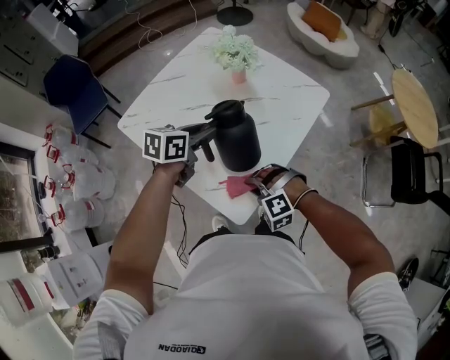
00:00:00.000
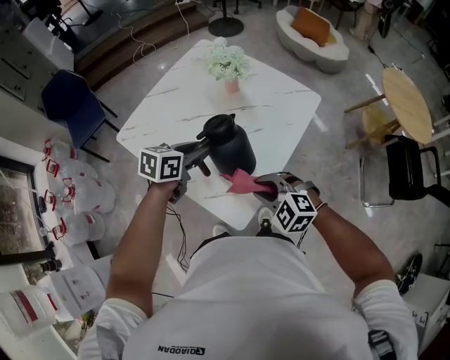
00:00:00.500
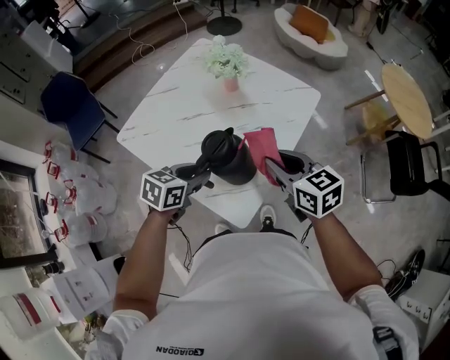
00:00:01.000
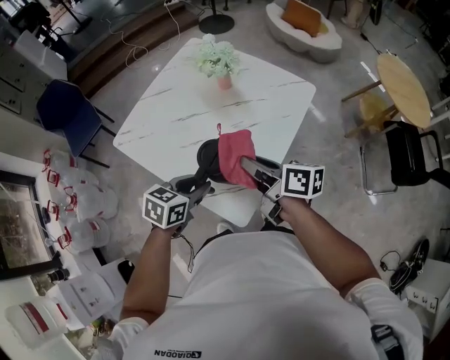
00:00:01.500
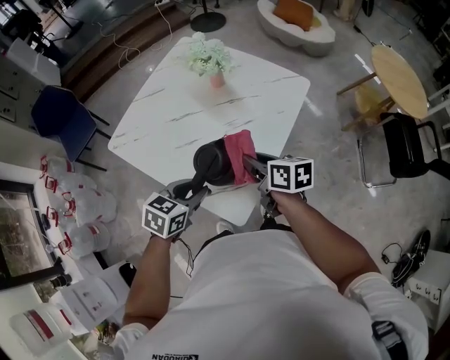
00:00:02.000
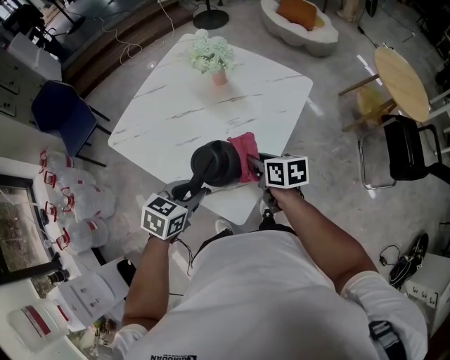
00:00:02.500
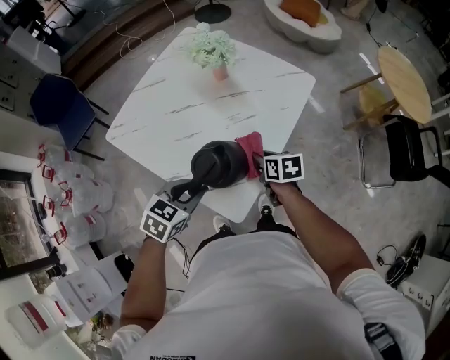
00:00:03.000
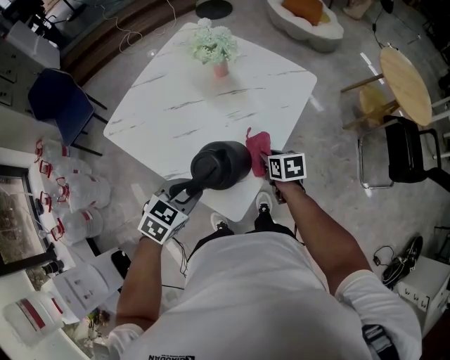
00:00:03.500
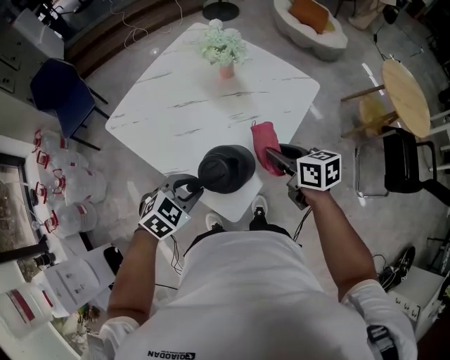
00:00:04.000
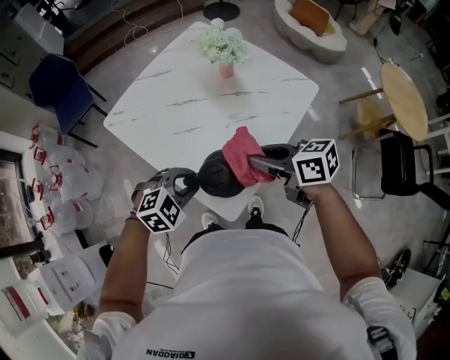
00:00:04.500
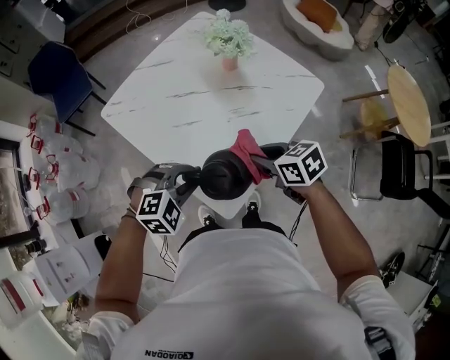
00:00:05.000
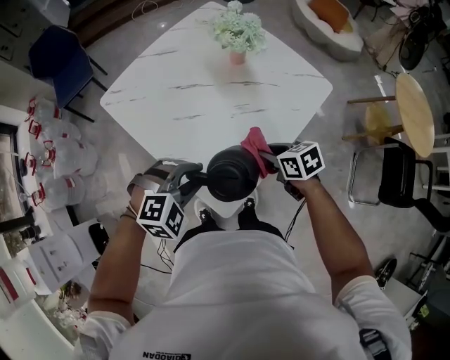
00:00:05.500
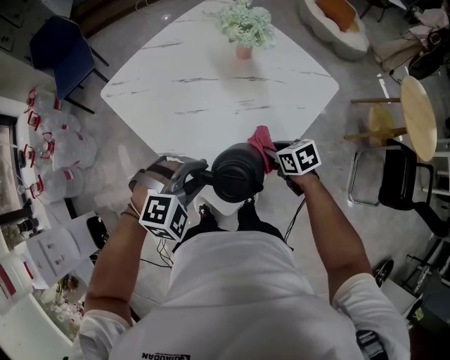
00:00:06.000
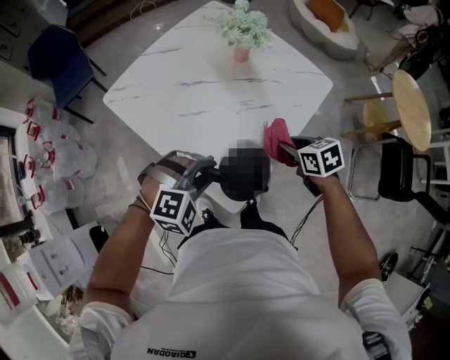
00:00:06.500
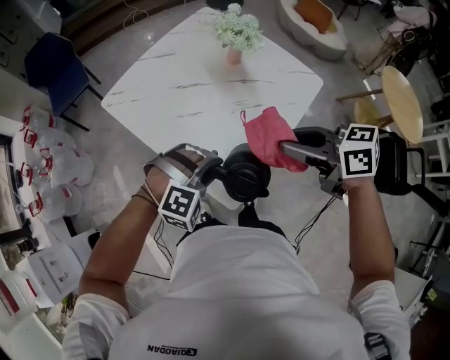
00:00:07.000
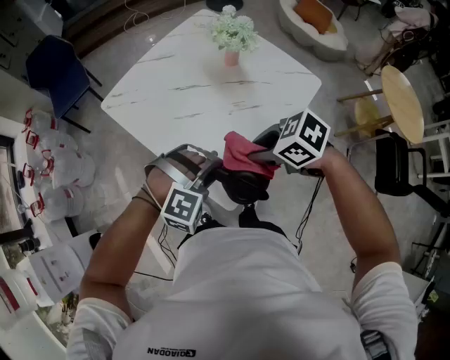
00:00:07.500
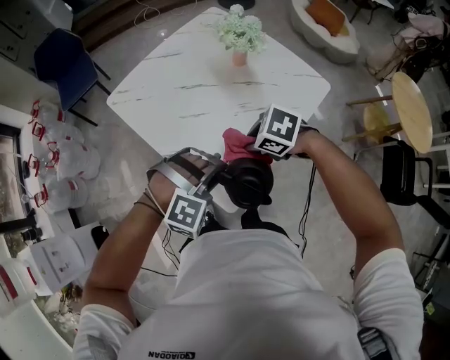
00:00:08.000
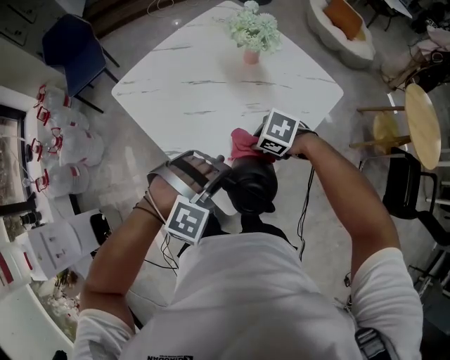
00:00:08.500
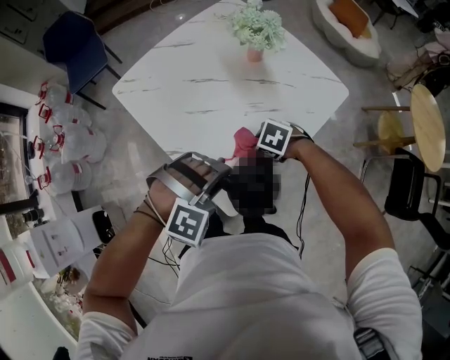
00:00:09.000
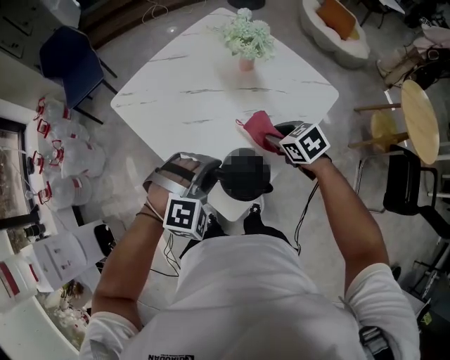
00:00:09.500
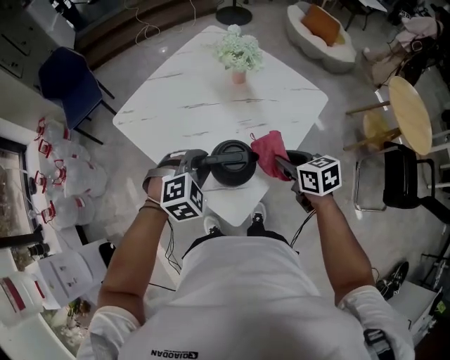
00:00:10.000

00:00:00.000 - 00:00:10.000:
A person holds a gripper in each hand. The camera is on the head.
00:00:00.000 - 00:00:02.000: The left gripper shifts some 15 cm backward, and rotates roughly 20 degrees. Meanwhile the right gripper is displaced upward and forward by some 15 cm, and rotates around the line of its fingers by about 120 degrees, clockwise from behind.
00:00:02.000 - 00:00:04.000: The left gripper swivels about 30 degrees. The right gripper is displaced to the right by approximately 5 cm, and travels downward and back again, approximately 15 cm each way.
00:00:04.000 - 00:00:06.000: The left gripper changes its angle by some 30 degrees; the right gripper travels downward by some 15 cm, and turns by roughly 30 degrees.
00:00:06.000 - 00:00:08.000: The left gripper turns by about 30 degrees, while the right gripper travels upward by about 10 cm, and turns by approximately 50 degrees.
00:00:08.000 - 00:00:10.000: The right gripper goes downward and returns, approximately 10 cm each way, and turns by roughly 60 degrees. Meanwhile the left gripper shifts by approximately 10 cm, and changes its angle by roughly 30 degrees.

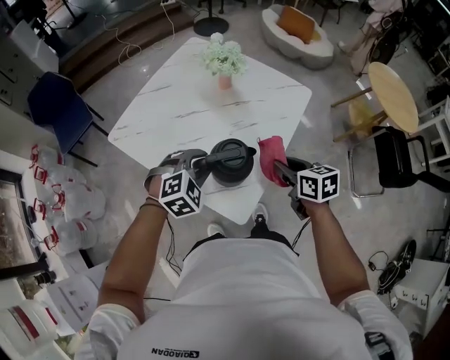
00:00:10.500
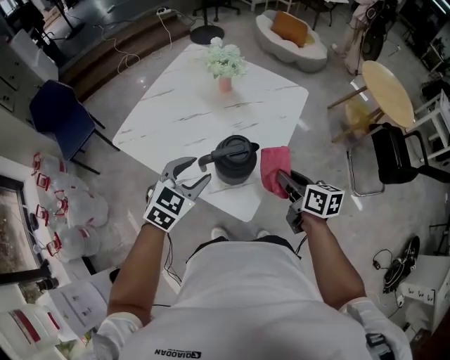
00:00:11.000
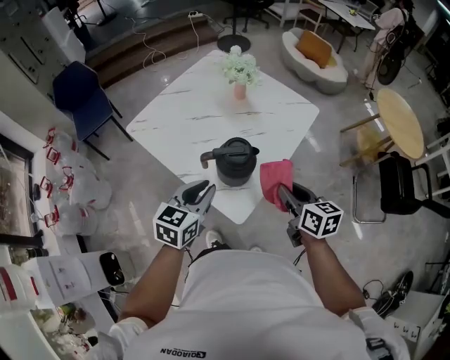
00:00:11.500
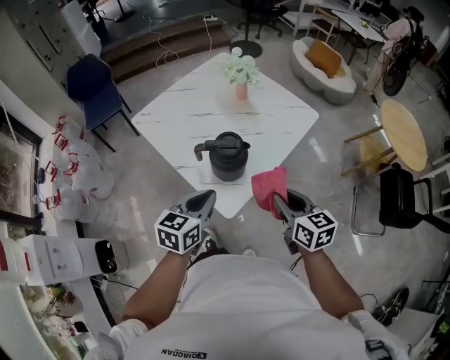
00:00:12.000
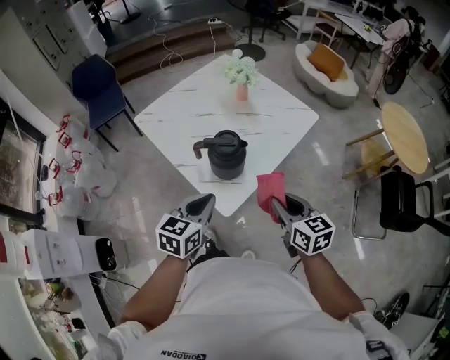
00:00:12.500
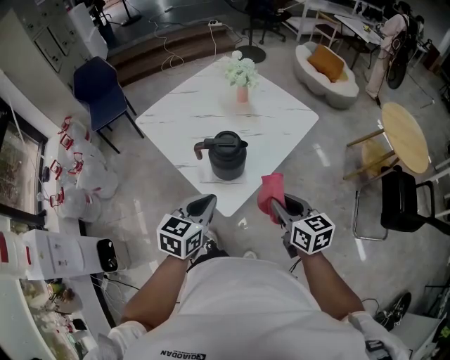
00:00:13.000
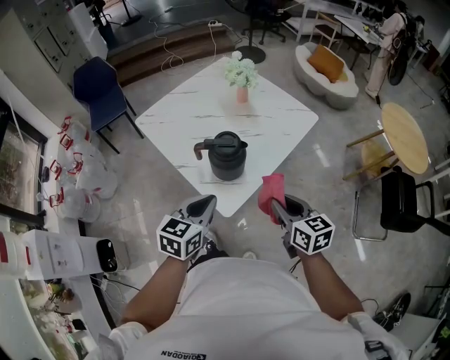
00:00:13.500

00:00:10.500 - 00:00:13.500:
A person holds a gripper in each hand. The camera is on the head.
00:00:10.500 - 00:00:12.000: Both grippers travel together backward and upward, roughly 15 cm. The left gripper rolls counterclockwise, seen from behind, by some 60 degrees, and closes.
00:00:12.000 - 00:00:13.500: The grippers make only small movements.

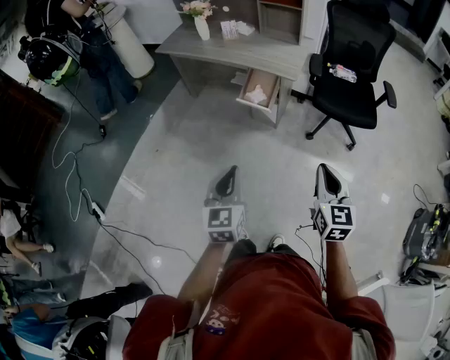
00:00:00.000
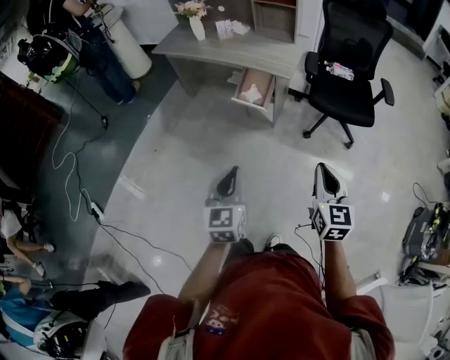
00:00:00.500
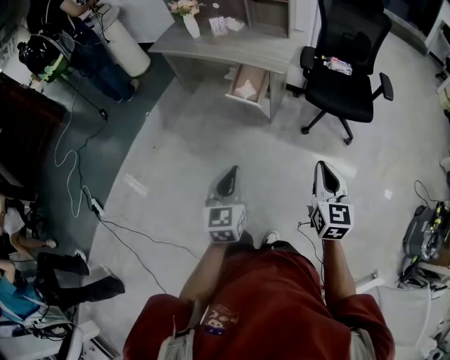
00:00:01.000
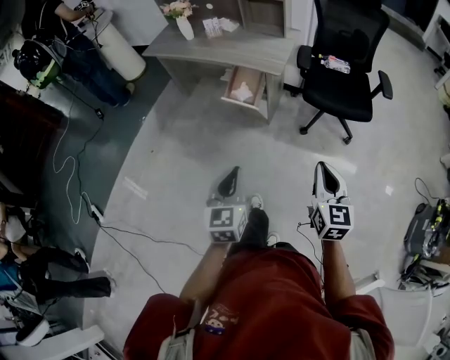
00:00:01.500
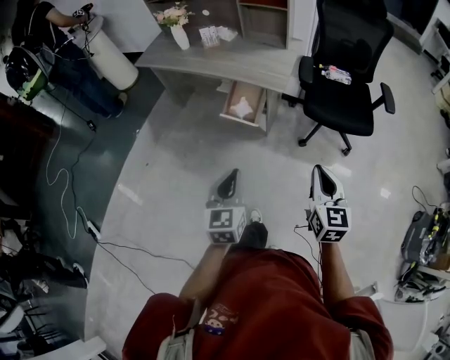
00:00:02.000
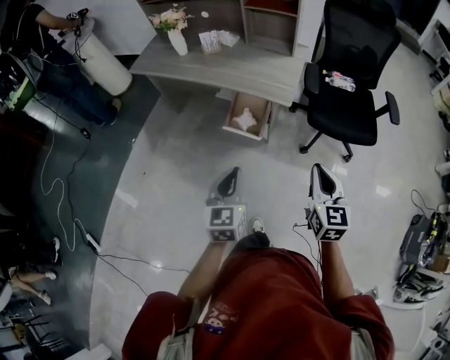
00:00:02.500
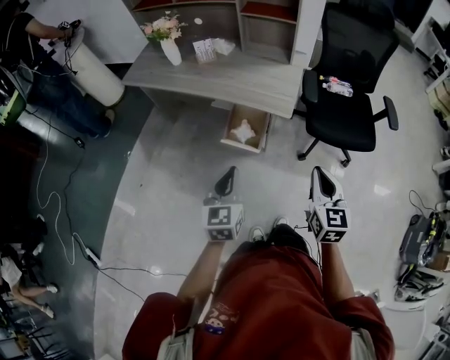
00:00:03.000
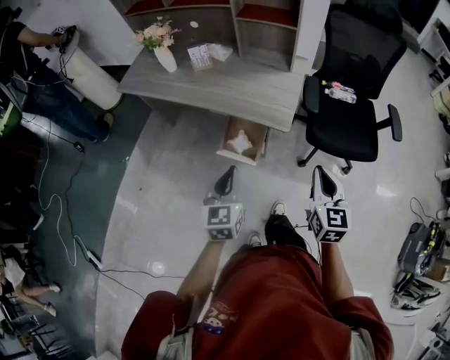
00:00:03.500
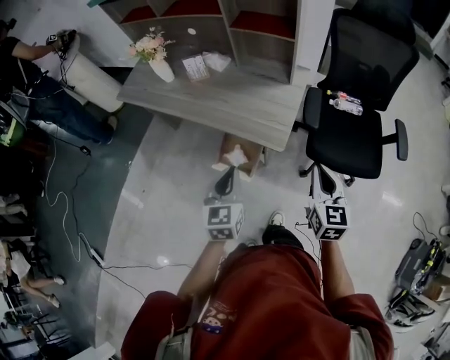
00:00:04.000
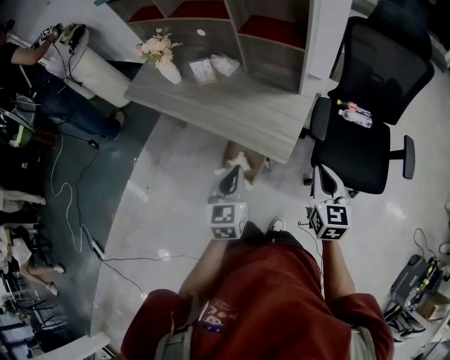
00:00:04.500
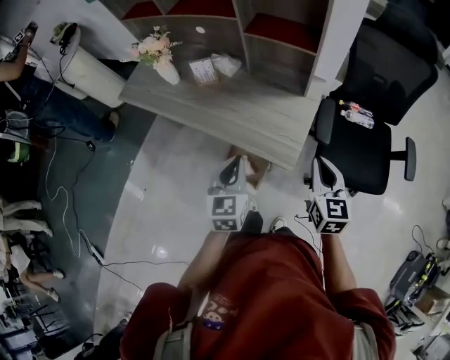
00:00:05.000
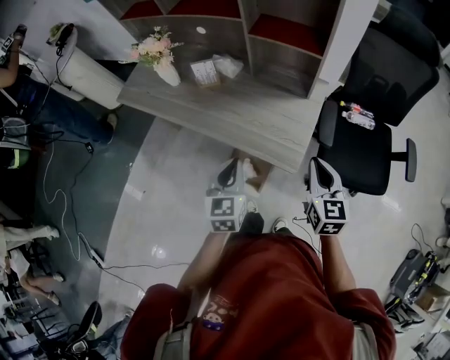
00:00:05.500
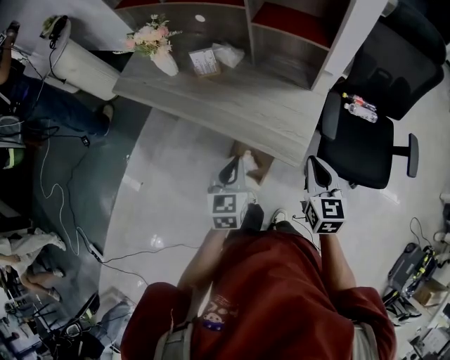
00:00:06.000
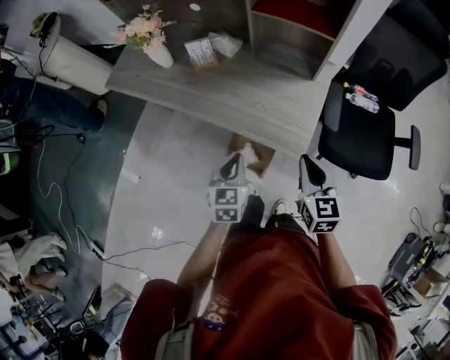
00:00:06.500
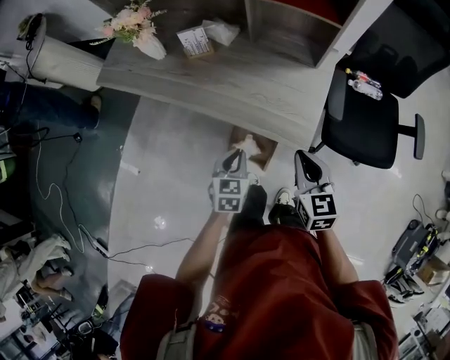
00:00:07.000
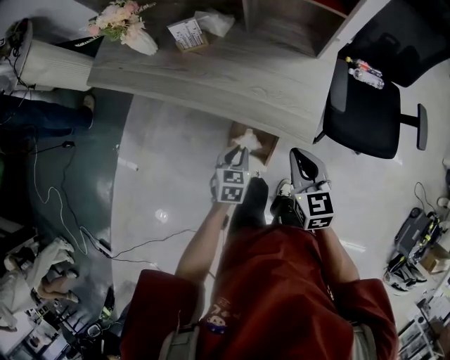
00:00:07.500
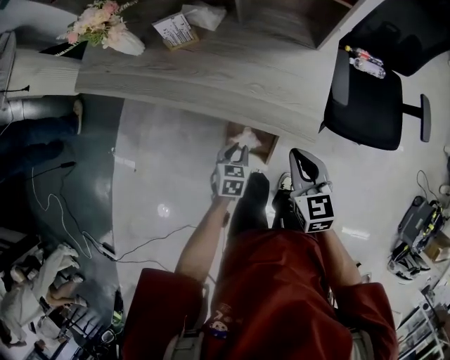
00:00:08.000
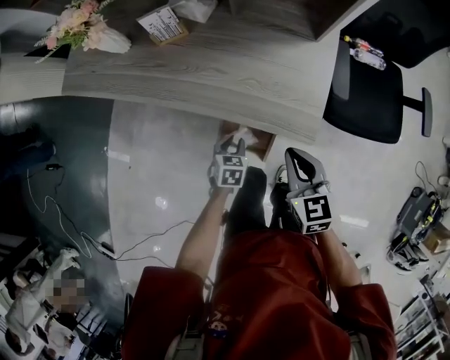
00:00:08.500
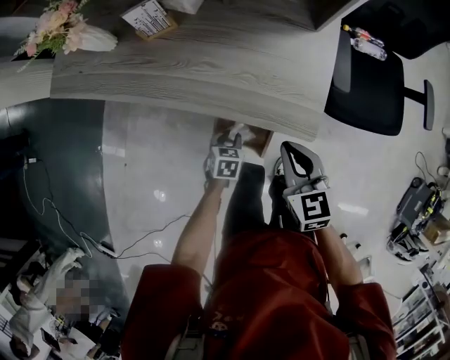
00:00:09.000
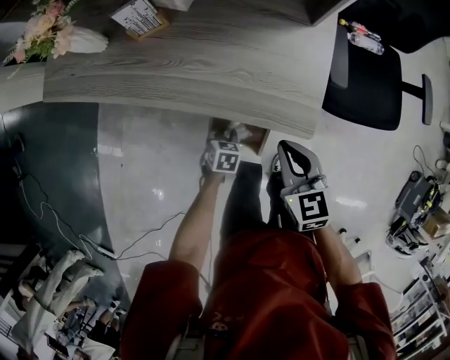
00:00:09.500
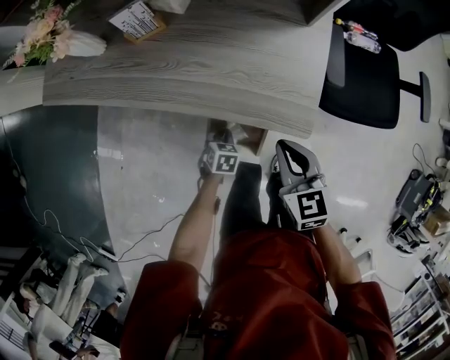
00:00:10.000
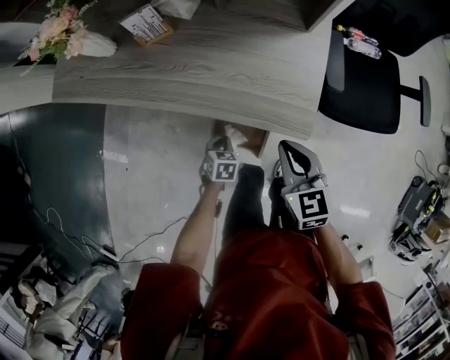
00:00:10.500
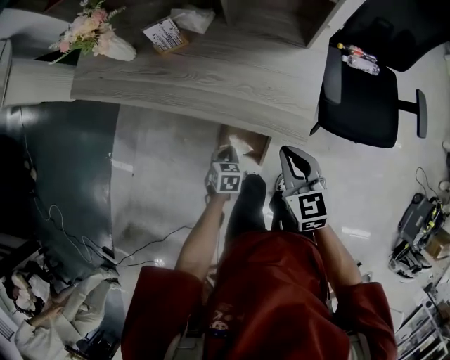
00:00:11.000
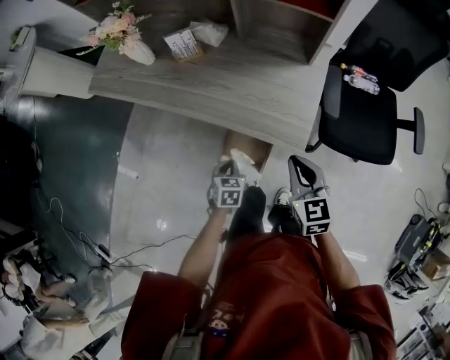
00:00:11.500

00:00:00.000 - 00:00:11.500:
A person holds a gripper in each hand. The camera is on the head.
00:00:00.000 - 00:00:02.000: Both grippers move forward and to the right, about 15 cm.
00:00:02.000 - 00:00:04.000: Both grippers move forward, roughly 35 cm.
00:00:04.000 - 00:00:06.000: Both grippers travel together forward and to the left, about 15 cm.
00:00:06.000 - 00:00:07.500: The left gripper goes roughly 20 cm downward, and changes its angle by about 20 degrees. Meanwhile the right gripper travels to the left and downward by approximately 10 cm.
00:00:07.500 - 00:00:09.500: The left gripper is displaced downward by approximately 20 cm. The right gripper travels downward by some 5 cm.
00:00:09.500 - 00:00:11.500: The right gripper goes about 5 cm upward. Meanwhile the left gripper travels upward and backward by approximately 15 cm, and closes up.

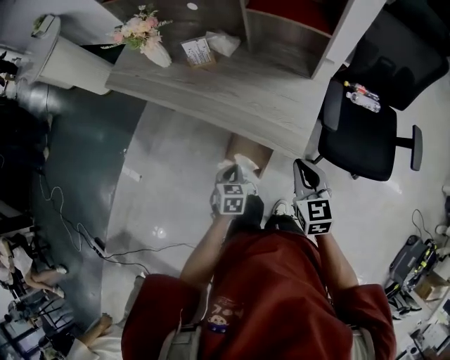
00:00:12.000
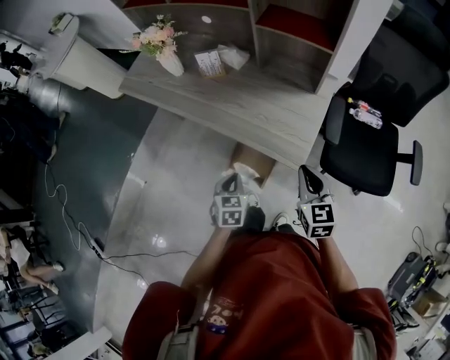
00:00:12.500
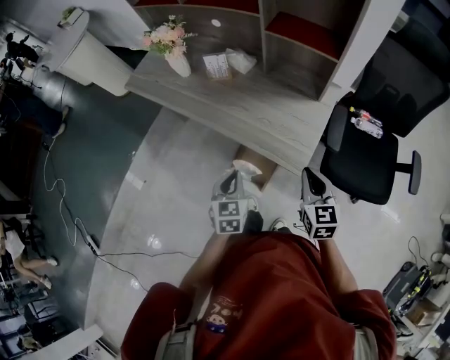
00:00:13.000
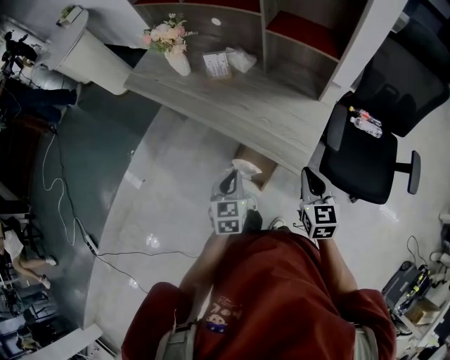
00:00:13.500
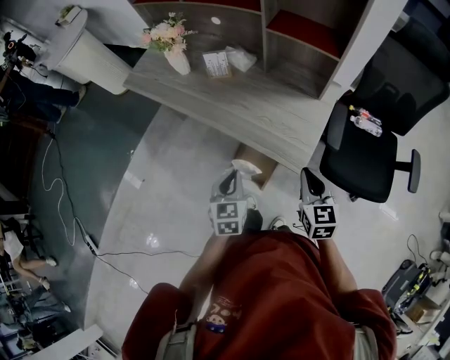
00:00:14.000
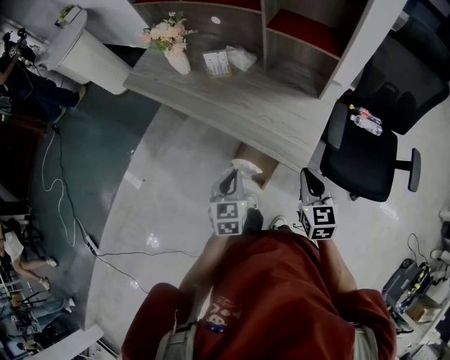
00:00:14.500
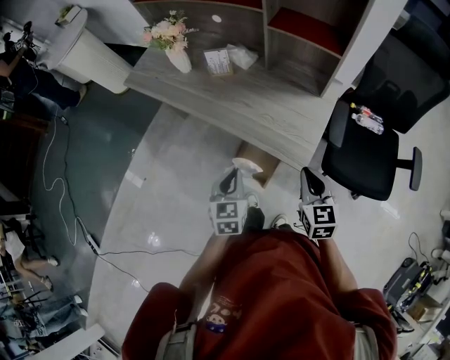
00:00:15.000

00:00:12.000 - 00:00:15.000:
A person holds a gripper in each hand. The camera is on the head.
00:00:12.000 - 00:00:13.500: The left gripper heads upward, covering some 15 cm.
00:00:13.500 - 00:00:15.000: The grippers make only small movements.
